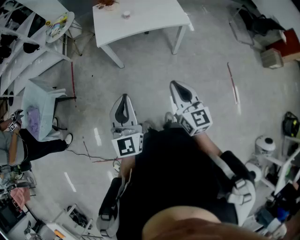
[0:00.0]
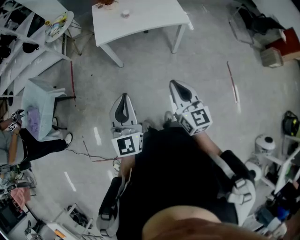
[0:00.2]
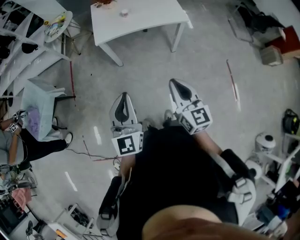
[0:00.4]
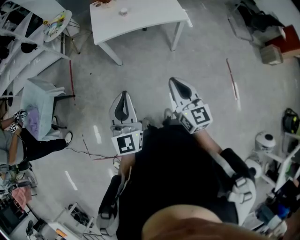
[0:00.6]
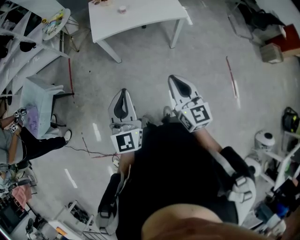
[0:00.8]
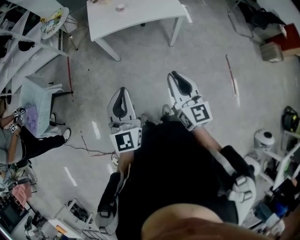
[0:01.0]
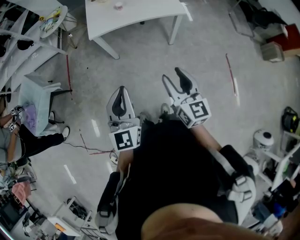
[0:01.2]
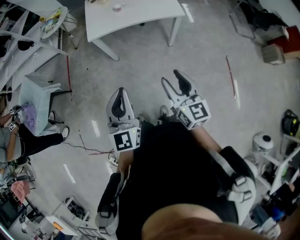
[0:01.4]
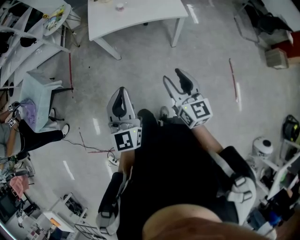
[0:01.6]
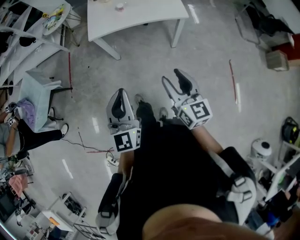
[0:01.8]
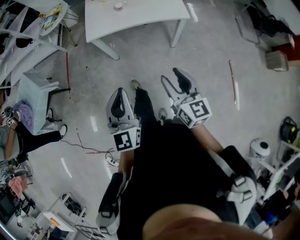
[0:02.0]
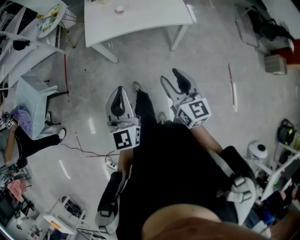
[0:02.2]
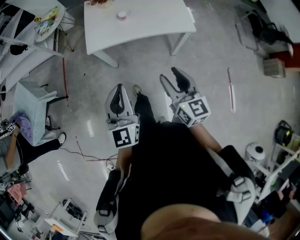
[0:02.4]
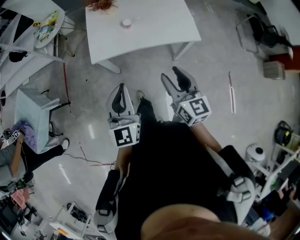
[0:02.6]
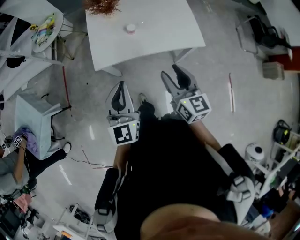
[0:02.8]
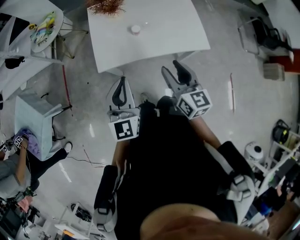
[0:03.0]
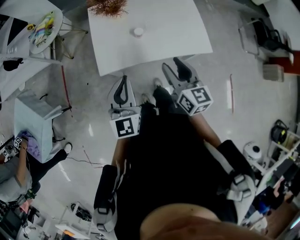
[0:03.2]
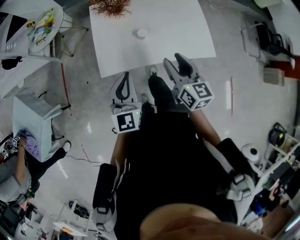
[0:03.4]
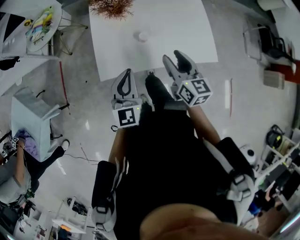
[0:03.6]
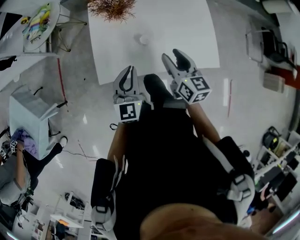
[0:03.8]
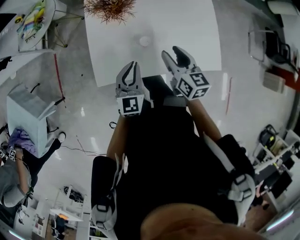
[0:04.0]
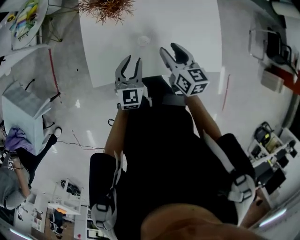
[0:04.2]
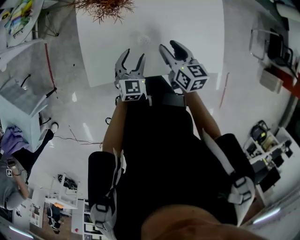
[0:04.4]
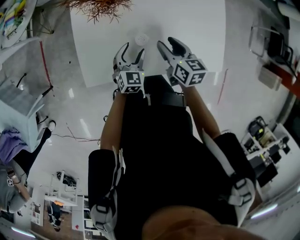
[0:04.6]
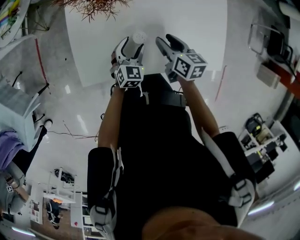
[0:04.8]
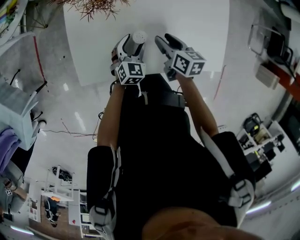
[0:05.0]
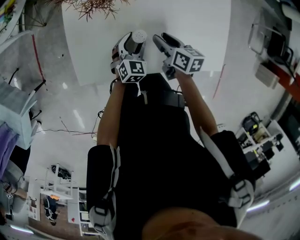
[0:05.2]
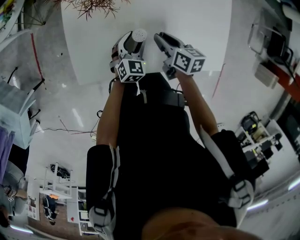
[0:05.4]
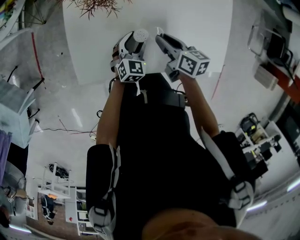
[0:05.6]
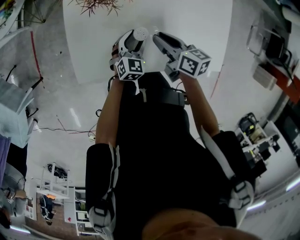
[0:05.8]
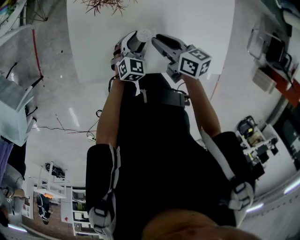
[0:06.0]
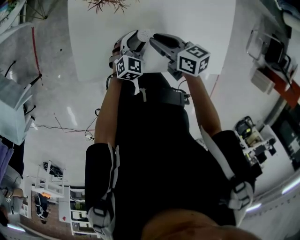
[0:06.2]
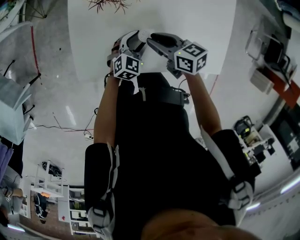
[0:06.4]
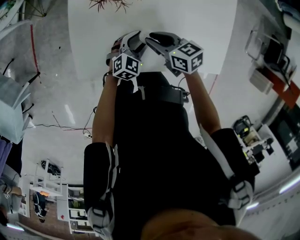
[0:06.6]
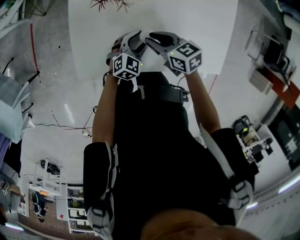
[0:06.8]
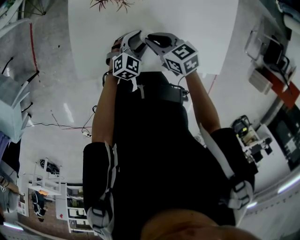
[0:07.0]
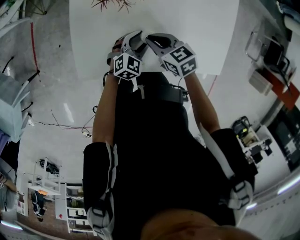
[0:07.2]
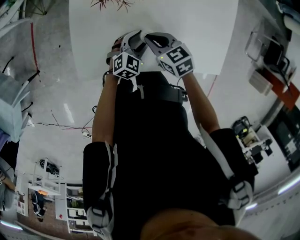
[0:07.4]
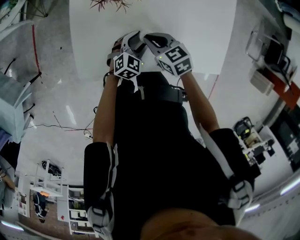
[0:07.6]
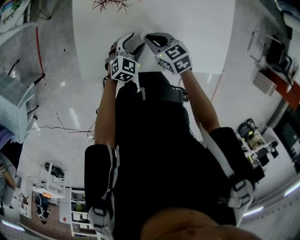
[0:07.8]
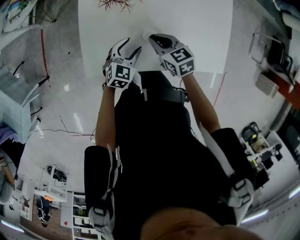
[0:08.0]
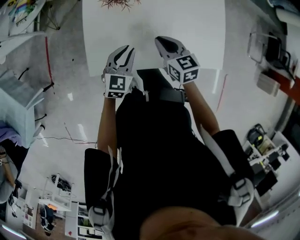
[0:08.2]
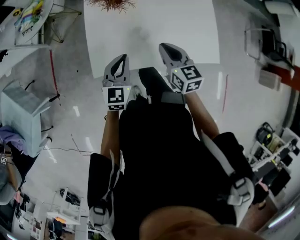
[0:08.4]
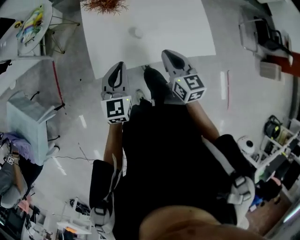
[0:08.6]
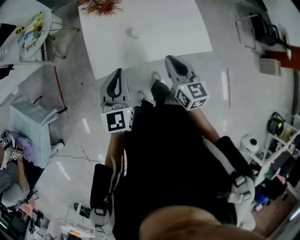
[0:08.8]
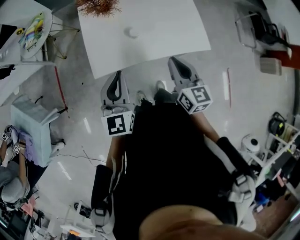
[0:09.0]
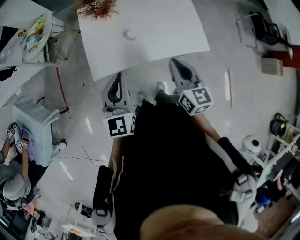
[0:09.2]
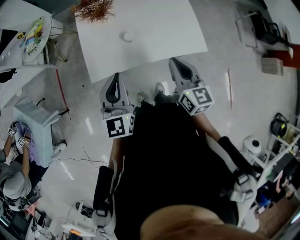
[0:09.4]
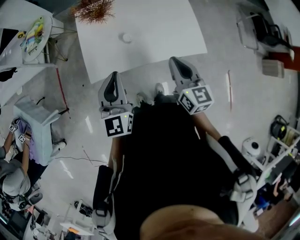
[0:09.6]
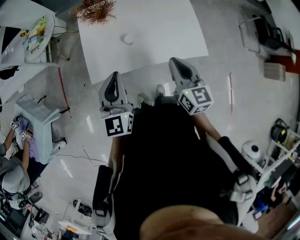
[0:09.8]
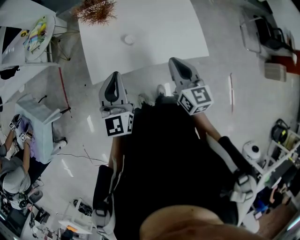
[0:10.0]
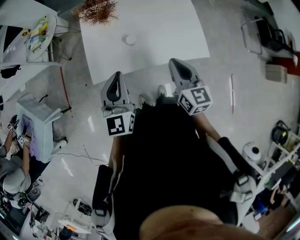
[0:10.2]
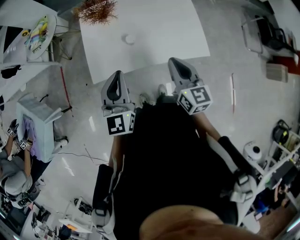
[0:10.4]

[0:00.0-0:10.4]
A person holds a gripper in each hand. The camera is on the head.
0.0 to 1.4 s: The grippers both shift to the right by about 5 cm. The right gripper opens.
1.4 to 3.0 s: The pair of grippers is taken forward, some 40 cm.
3.0 to 4.4 s: The right gripper goes some 35 cm forward and downward, and rotates roughly 20 degrees; the left gripper shifts some 40 cm downward and forward, changes its angle by approximately 30 degrees, and opens up.
4.4 to 6.0 s: The right gripper goes roughly 5 cm downward, turns by some 30 degrees, and closes its fingers, while the left gripper moves downward, roughly 10 cm.
6.0 to 7.4 s: The right gripper moves approximately 5 cm, and rotates approximately 30 degrees.
7.4 to 9.0 s: The two grippers go roughly 40 cm upward and backward. The right gripper tips its fingers upward by some 30 degrees. Meanwhile the left gripper turns by about 40 degrees, and closes its fingers.
9.0 to 10.4 s: The two grippers go roughly 5 cm to the right.

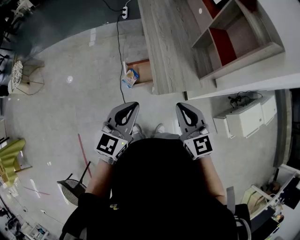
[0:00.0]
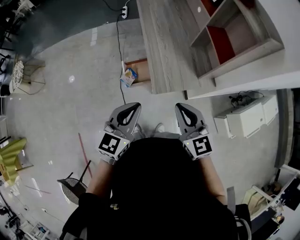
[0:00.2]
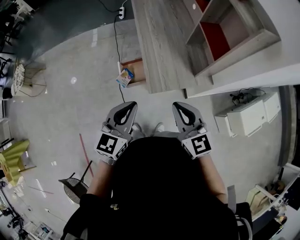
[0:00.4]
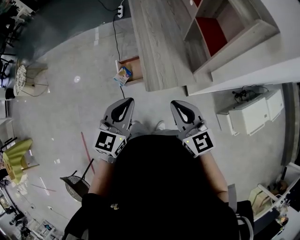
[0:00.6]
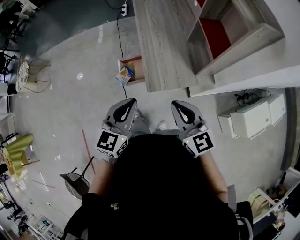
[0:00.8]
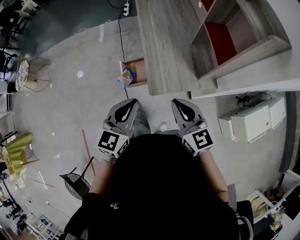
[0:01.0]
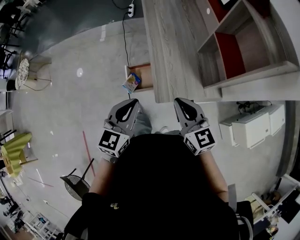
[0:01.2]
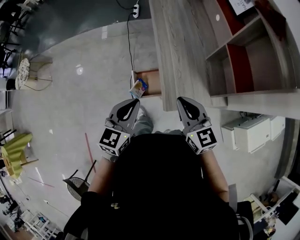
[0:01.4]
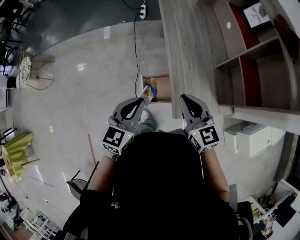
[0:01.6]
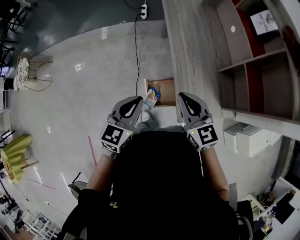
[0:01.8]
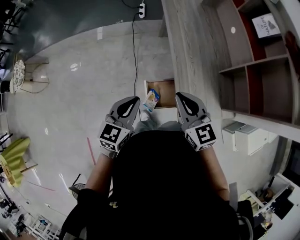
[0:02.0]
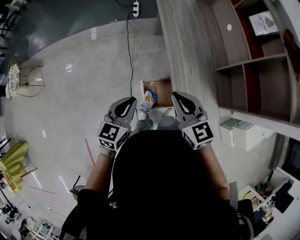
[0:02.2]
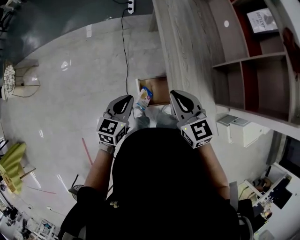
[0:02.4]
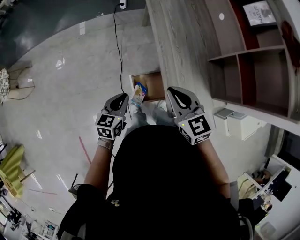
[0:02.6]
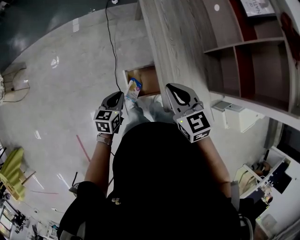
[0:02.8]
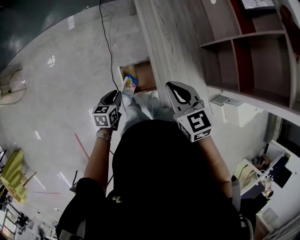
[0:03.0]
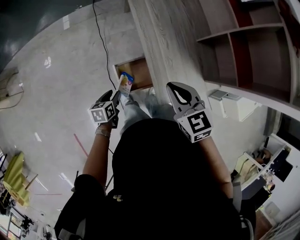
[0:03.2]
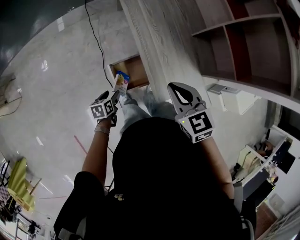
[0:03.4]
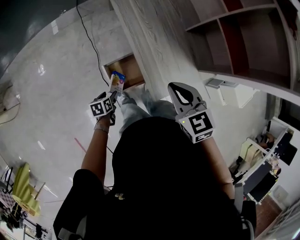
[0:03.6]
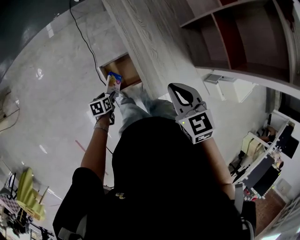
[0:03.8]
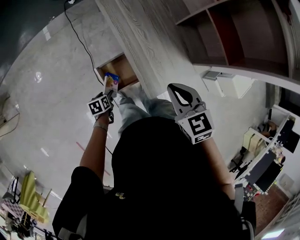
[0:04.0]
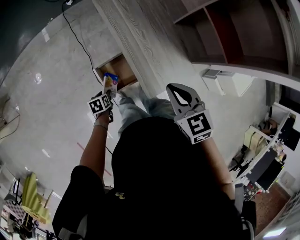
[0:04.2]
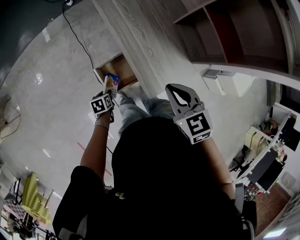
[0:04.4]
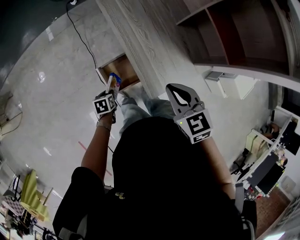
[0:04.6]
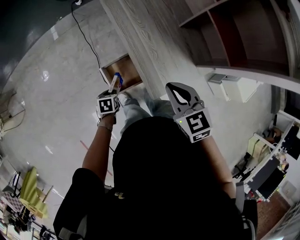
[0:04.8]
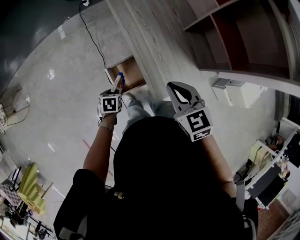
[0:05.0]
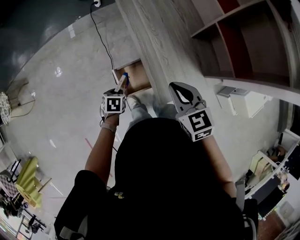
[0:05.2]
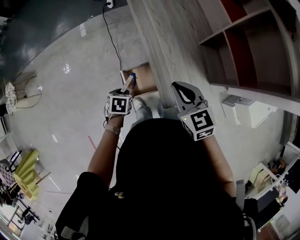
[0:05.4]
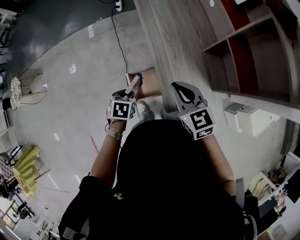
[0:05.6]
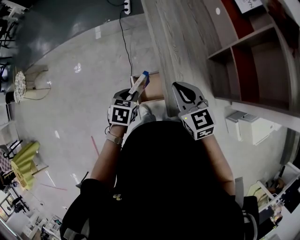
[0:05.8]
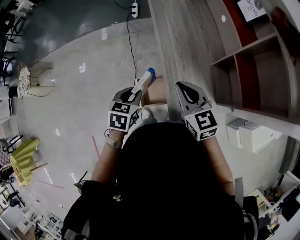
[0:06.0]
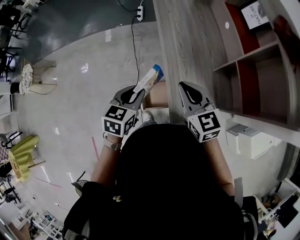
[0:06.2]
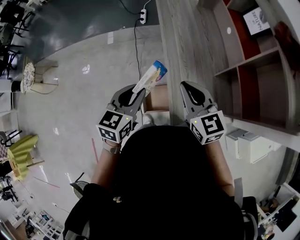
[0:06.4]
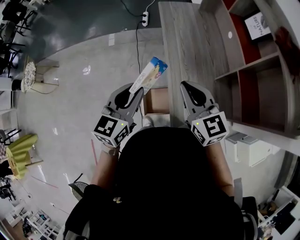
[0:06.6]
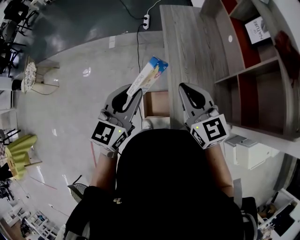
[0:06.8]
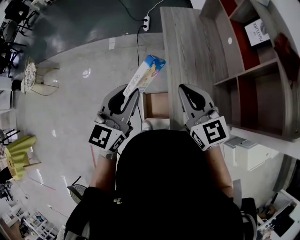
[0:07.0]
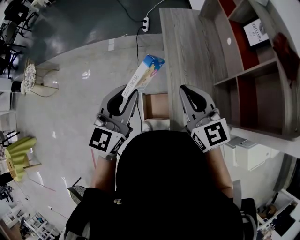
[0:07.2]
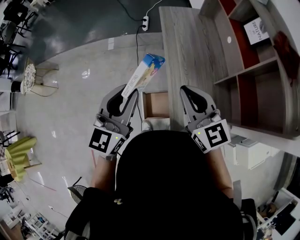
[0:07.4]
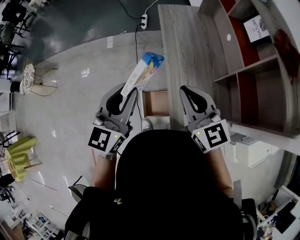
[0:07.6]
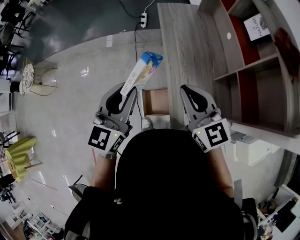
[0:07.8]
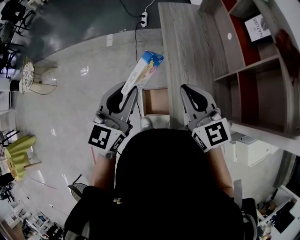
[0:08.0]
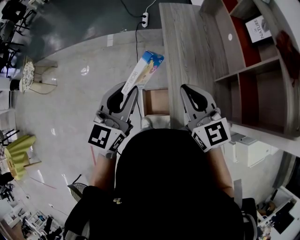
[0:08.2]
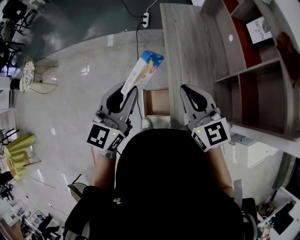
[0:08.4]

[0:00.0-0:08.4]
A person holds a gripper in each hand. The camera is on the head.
0.0 to 1.4 s: The two grippers go some 15 cm forward.
1.4 to 2.8 s: The left gripper heads downward, to the left and forward, covering about 25 cm, and turns by approximately 30 degrees. Meanwhile the right gripper heads forward and to the left, covering roughly 15 cm.
2.8 to 4.2 s: The right gripper moves to the right, approximately 10 cm. Meanwhile the left gripper travels downward by approximately 20 cm, changes its angle by some 30 degrees, and opens.
4.2 to 5.6 s: The left gripper travels upward by approximately 20 cm, turns by approximately 20 degrees, and closes up. Meanwhile the right gripper travels forward by approximately 5 cm.
5.6 to 7.0 s: The left gripper heads upward, covering approximately 30 cm, and tilts its fingers approximately 60 degrees upward. The right gripper shifts some 15 cm upward and forward, and changes its angle by approximately 20 degrees.
7.0 to 8.4 s: The grippers stay close to where they were, moving slightly.

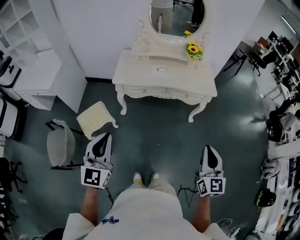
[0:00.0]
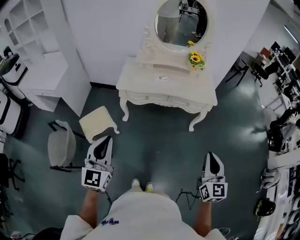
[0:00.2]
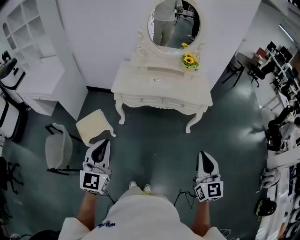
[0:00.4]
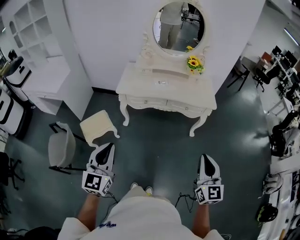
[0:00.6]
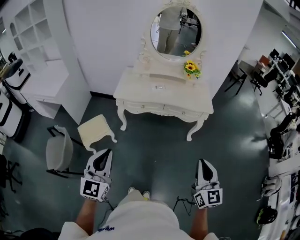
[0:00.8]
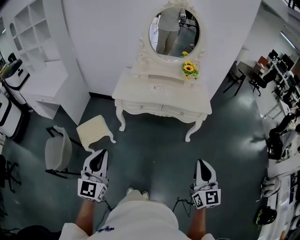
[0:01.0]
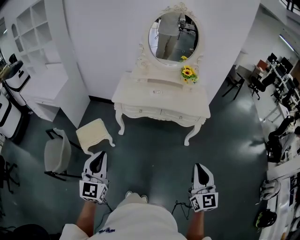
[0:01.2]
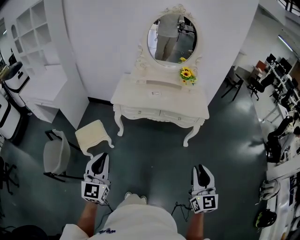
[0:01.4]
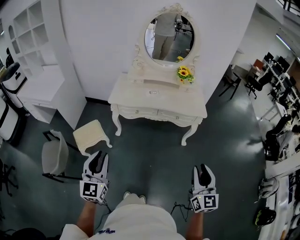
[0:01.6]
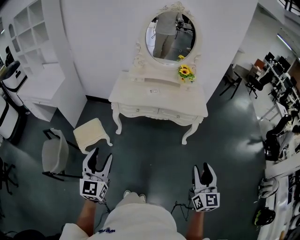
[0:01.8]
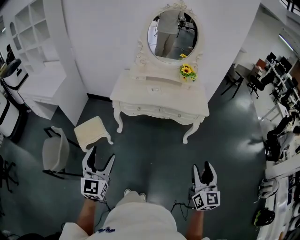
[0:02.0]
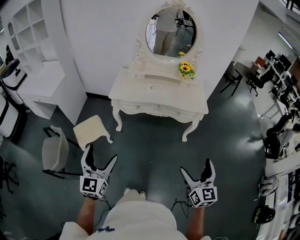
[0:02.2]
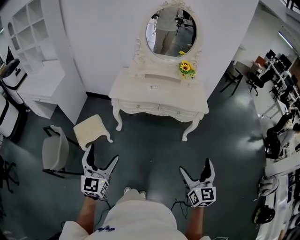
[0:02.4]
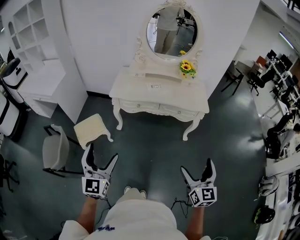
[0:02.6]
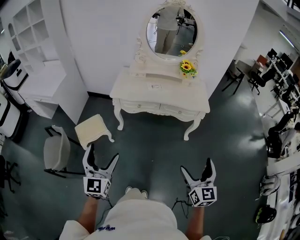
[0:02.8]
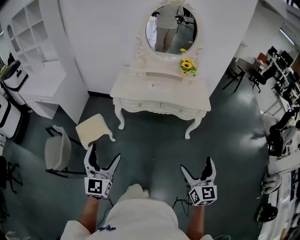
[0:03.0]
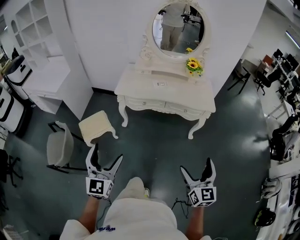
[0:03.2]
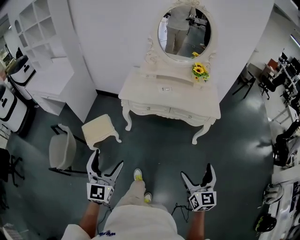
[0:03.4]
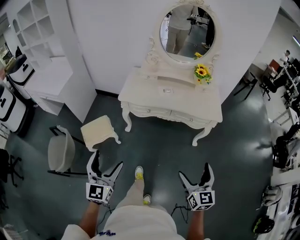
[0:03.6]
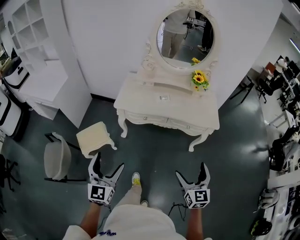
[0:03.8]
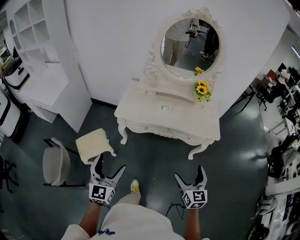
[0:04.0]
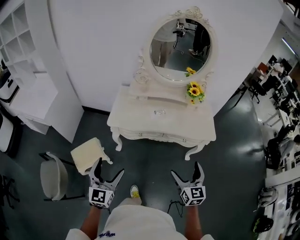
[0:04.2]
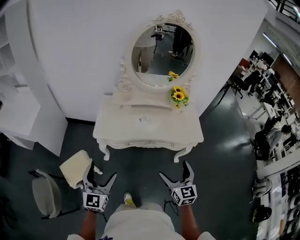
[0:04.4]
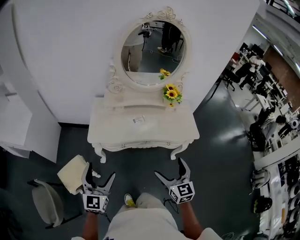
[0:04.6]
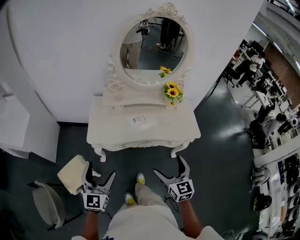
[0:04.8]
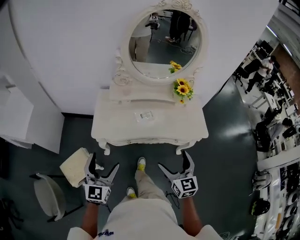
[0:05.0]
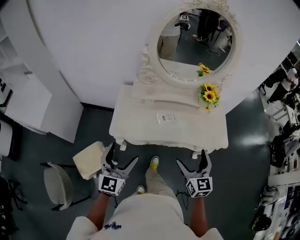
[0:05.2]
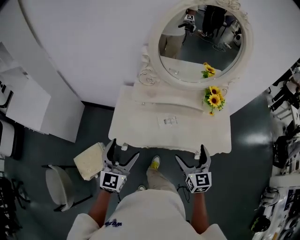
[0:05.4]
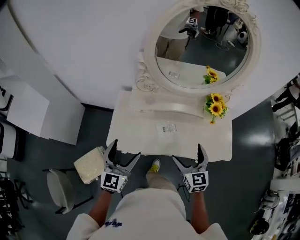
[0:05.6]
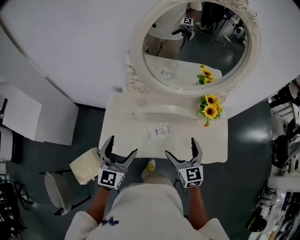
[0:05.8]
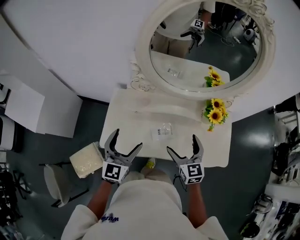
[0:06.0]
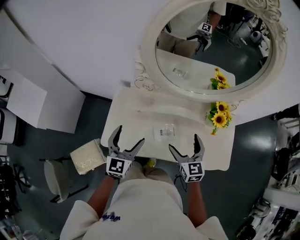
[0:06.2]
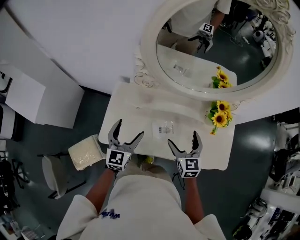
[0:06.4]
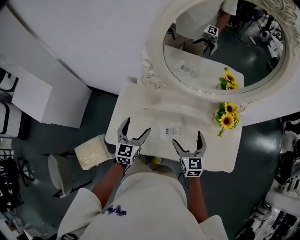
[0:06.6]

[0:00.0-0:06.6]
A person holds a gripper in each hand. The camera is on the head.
0.0 to 1.6 s: The right gripper goes about 10 cm to the right and backward, while the left gripper shifts roughly 5 cm backward.
1.6 to 3.2 s: The left gripper opens up. Meanwhile the right gripper moves approximately 5 cm, and opens its fingers.
3.2 to 5.0 s: The grippers both shift forward by about 40 cm.
5.0 to 6.6 s: Both grippers travel together forward, some 35 cm.
